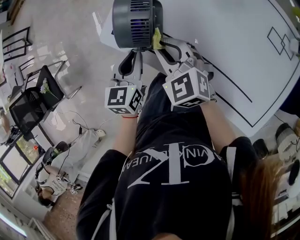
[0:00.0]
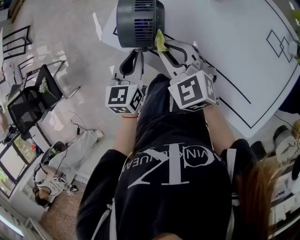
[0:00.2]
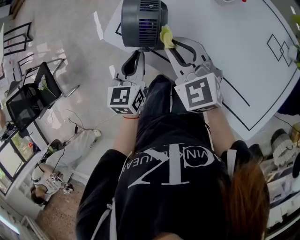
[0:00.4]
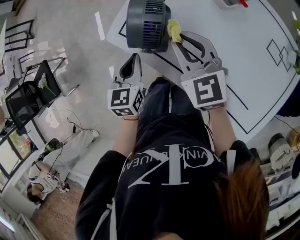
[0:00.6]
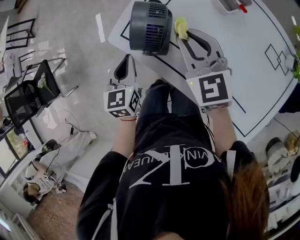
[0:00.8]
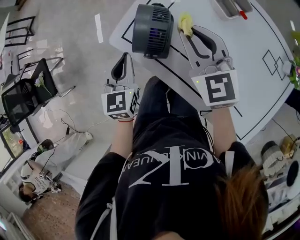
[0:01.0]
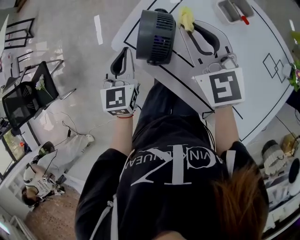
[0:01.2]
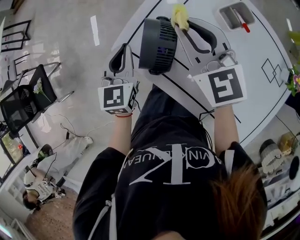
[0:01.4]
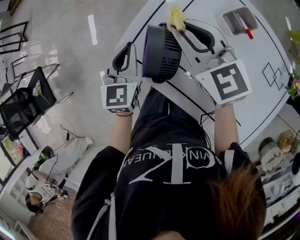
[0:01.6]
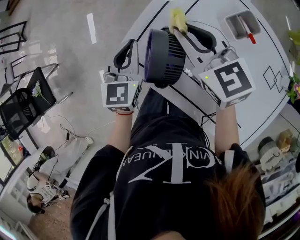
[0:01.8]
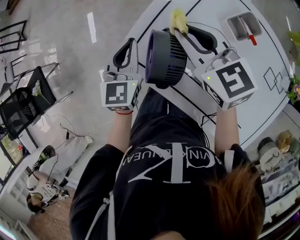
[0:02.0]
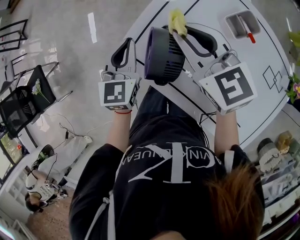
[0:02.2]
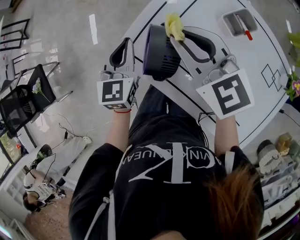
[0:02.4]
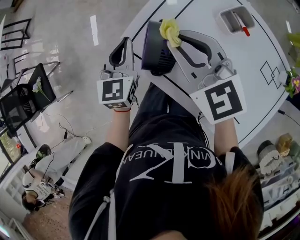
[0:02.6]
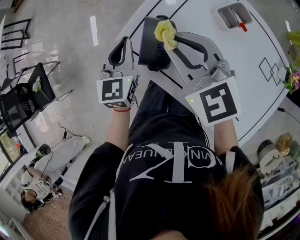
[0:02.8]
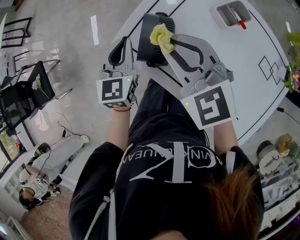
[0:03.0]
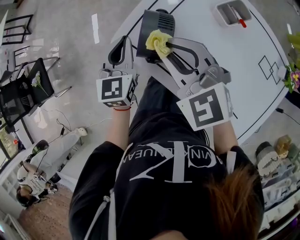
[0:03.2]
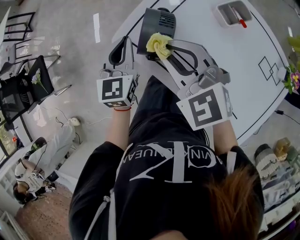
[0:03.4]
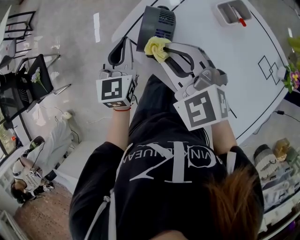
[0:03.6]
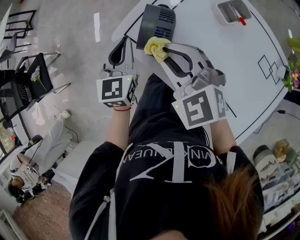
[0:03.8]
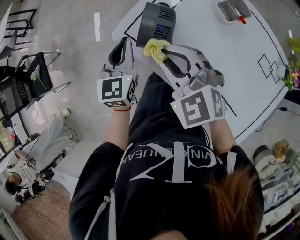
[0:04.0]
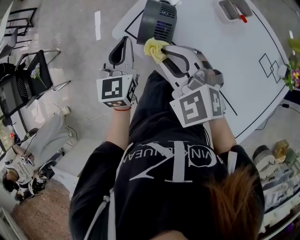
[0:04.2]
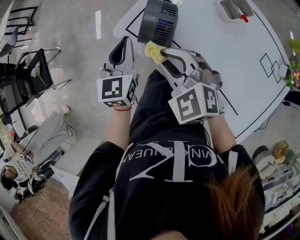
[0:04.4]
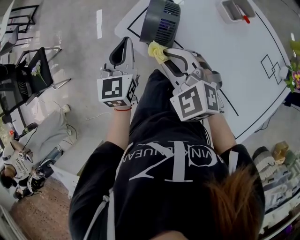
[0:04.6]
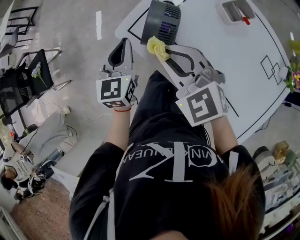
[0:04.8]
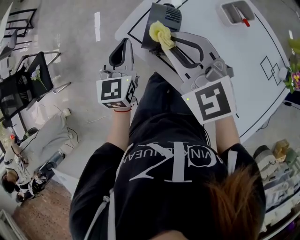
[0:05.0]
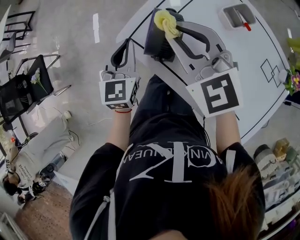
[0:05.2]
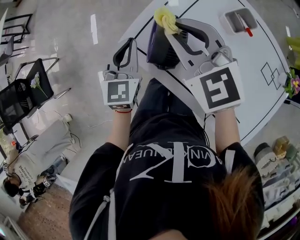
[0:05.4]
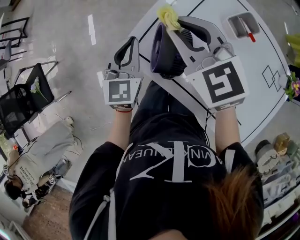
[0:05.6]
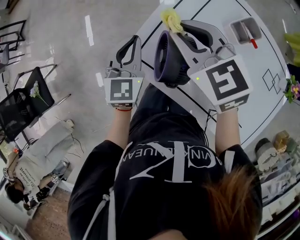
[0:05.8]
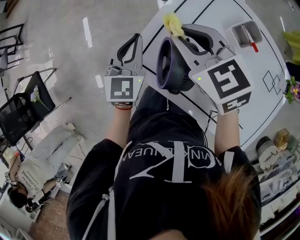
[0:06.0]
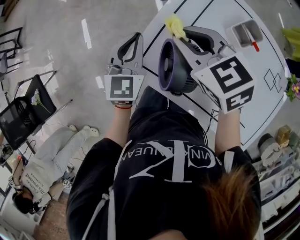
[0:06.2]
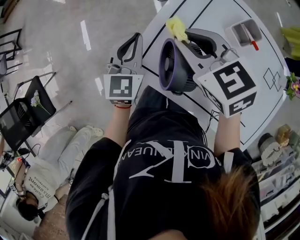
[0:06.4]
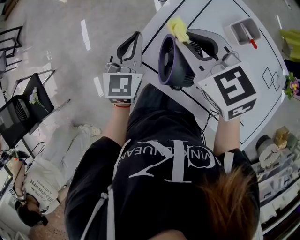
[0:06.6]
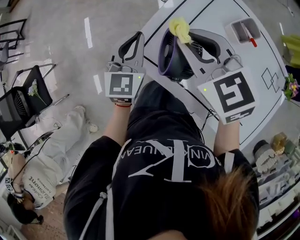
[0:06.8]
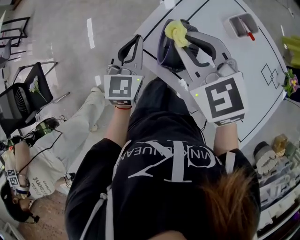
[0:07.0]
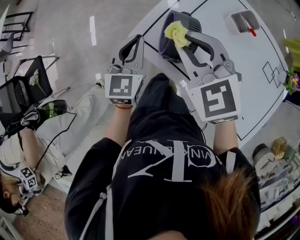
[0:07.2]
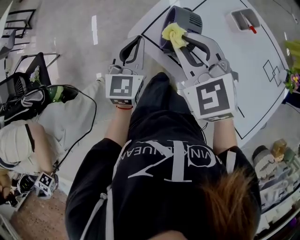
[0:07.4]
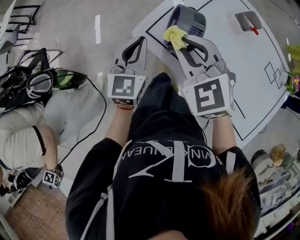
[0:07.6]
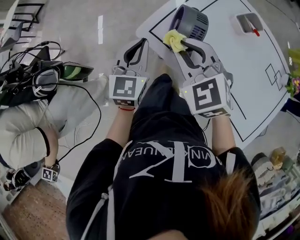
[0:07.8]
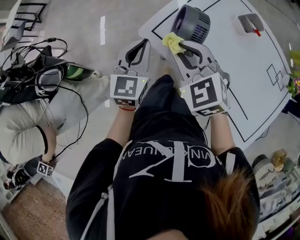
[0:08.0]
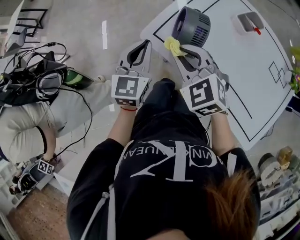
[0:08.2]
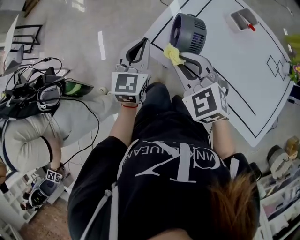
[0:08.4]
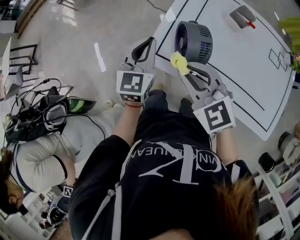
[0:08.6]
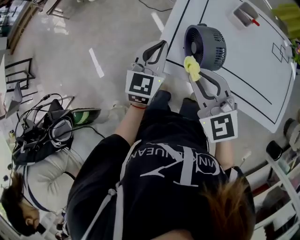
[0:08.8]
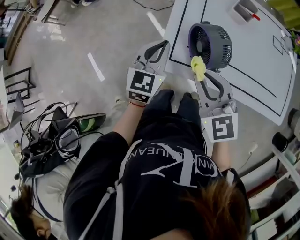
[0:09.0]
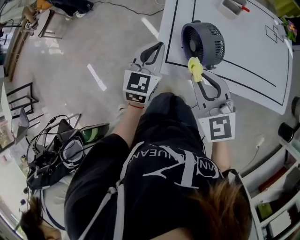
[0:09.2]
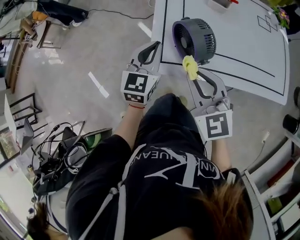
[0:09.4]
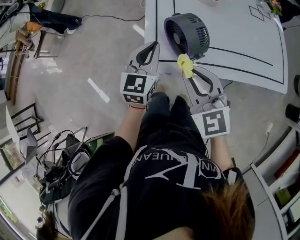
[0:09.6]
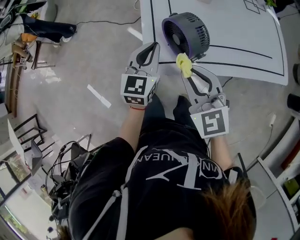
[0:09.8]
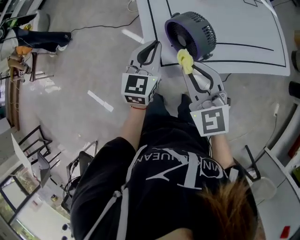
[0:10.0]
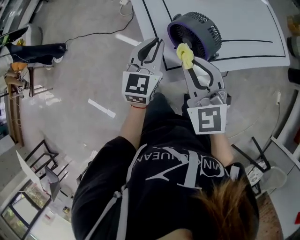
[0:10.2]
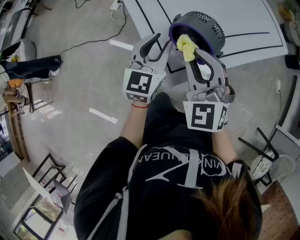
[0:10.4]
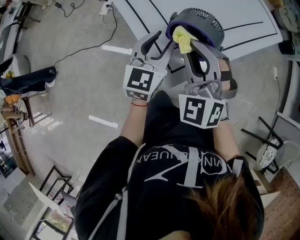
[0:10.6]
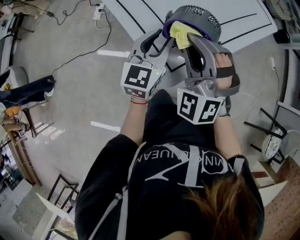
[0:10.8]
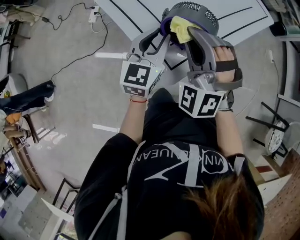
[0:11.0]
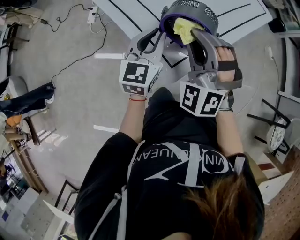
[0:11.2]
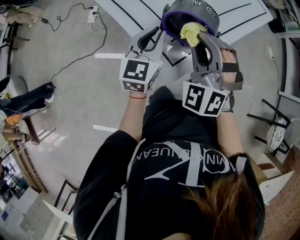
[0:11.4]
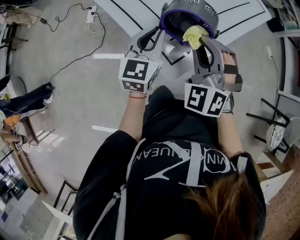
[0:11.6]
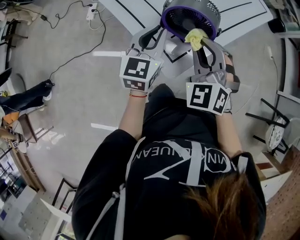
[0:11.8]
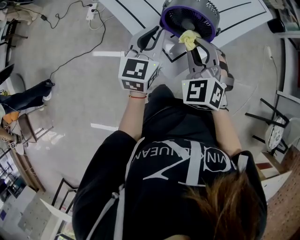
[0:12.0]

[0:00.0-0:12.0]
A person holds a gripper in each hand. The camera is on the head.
0:00.0 to 0:01.6: Both grippers move forward and upward, roughly 15 cm.
0:01.6 to 0:03.0: The right gripper heads backward, covering approximately 10 cm.
0:03.0 to 0:04.4: The right gripper heads backward and downward, covering approximately 10 cm. Meanwhile the left gripper ends up some 5 cm from where it was.
0:04.4 to 0:06.0: The two grippers go some 15 cm forward. The right gripper swivels some 30 degrees.
0:06.0 to 0:07.6: The two grippers go some 15 cm backward. The right gripper changes its angle by roughly 20 degrees.
0:07.6 to 0:09.0: The left gripper shifts by approximately 10 cm, and swivels roughly 40 degrees. The right gripper shifts by roughly 5 cm, and swivels about 40 degrees.
0:09.0 to 0:10.4: The left gripper ends up approximately 5 cm from where it was, swivels roughly 40 degrees, and opens. The right gripper ends up roughly 5 cm from where it was, and turns by about 50 degrees.
0:10.4 to 0:12.0: The right gripper moves downward, approximately 5 cm, and rotates about 20 degrees.

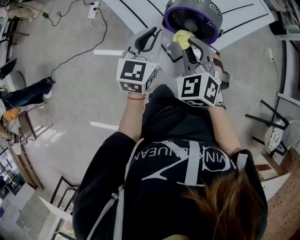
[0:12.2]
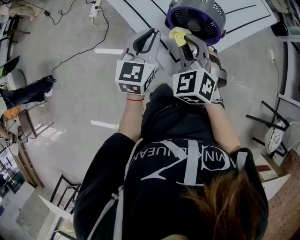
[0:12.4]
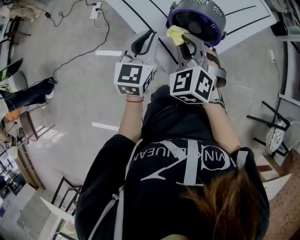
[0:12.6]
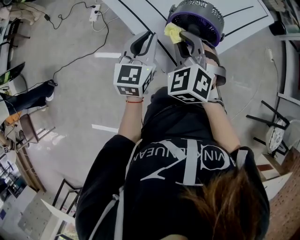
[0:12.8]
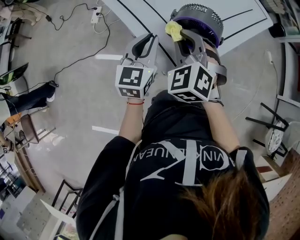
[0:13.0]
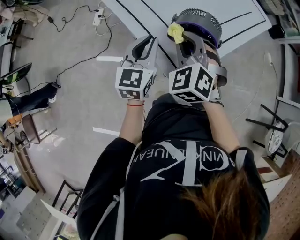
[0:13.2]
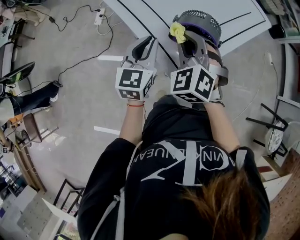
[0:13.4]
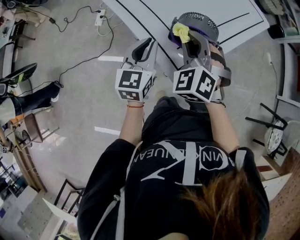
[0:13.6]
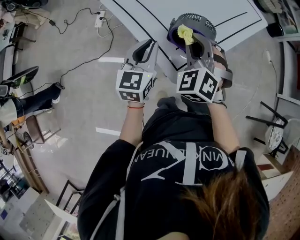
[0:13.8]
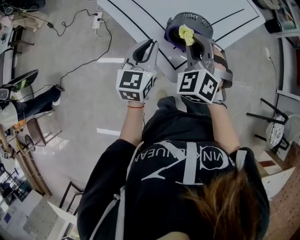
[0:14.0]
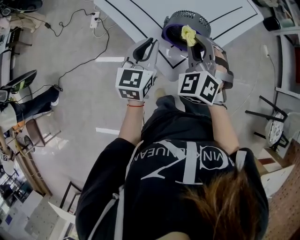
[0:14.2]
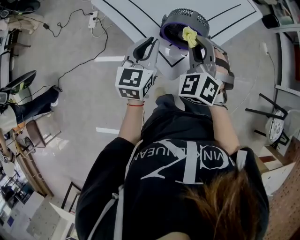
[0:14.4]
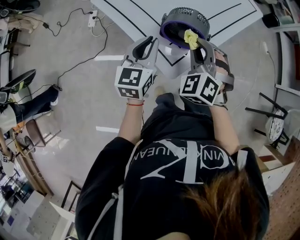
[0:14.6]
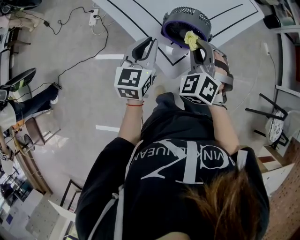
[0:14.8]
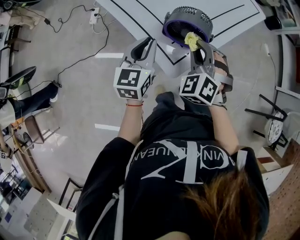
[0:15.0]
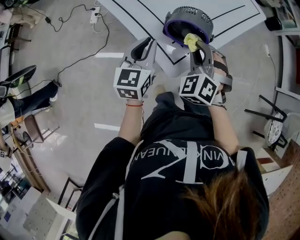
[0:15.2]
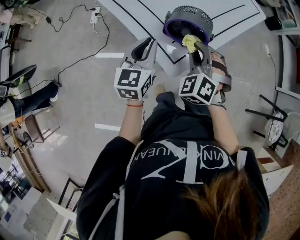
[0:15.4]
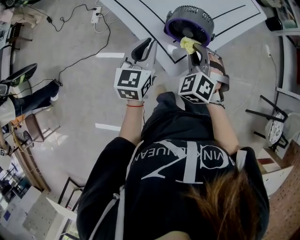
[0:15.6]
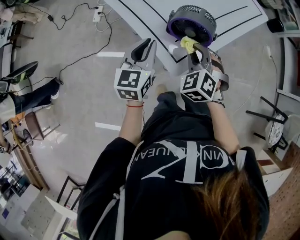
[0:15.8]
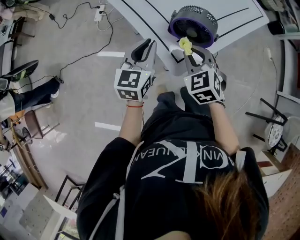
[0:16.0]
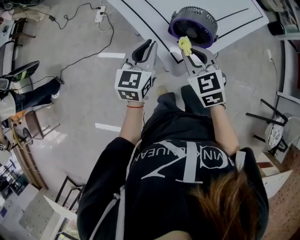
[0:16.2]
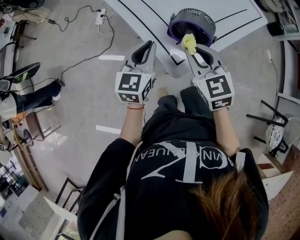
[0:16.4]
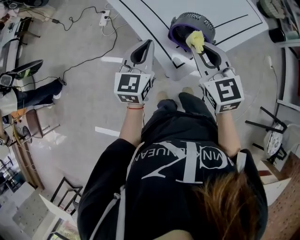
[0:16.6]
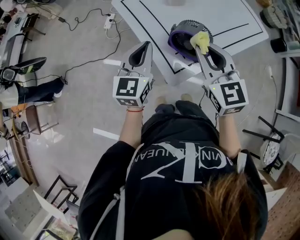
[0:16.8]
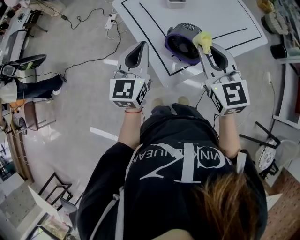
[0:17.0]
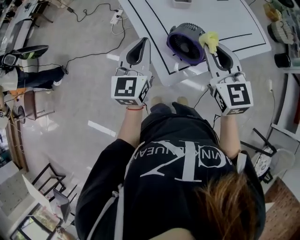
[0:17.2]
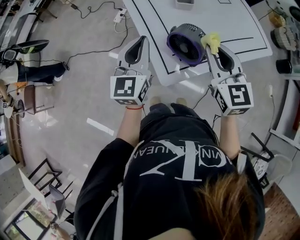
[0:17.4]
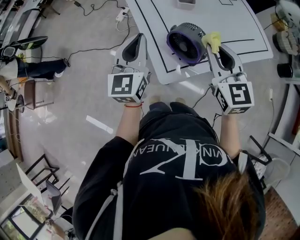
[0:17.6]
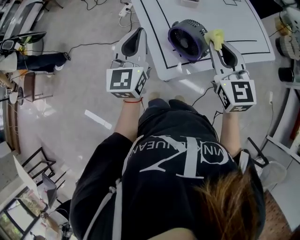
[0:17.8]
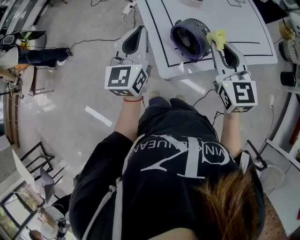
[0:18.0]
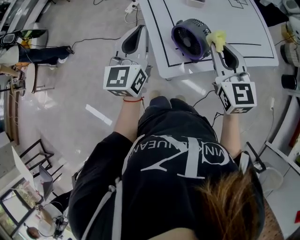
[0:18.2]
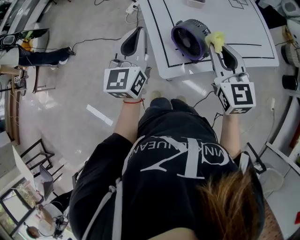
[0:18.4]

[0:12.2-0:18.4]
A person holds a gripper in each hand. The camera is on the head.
0:12.2 to 0:13.8: The left gripper moves upward, roughly 5 cm. The right gripper is displaced upward by roughly 10 cm.
0:13.8 to 0:15.4: The right gripper shifts about 5 cm downward.
0:15.4 to 0:16.8: The left gripper shifts approximately 5 cm upward, while the right gripper is displaced upward by roughly 10 cm, and rotates approximately 50 degrees.
0:16.8 to 0:18.4: The right gripper heads to the right, covering approximately 5 cm; the left gripper is displaced upward by about 5 cm, and rotates approximately 20 degrees.

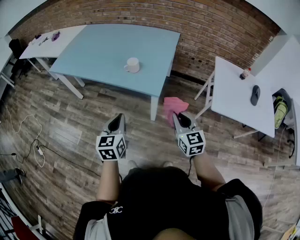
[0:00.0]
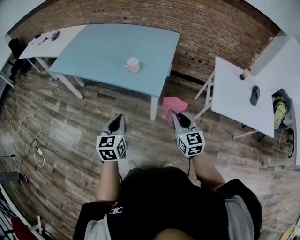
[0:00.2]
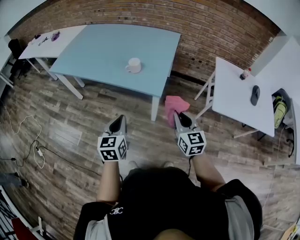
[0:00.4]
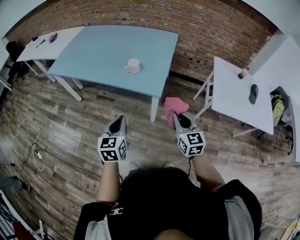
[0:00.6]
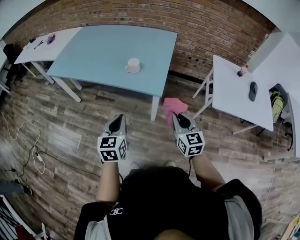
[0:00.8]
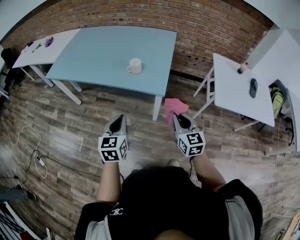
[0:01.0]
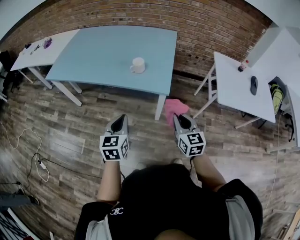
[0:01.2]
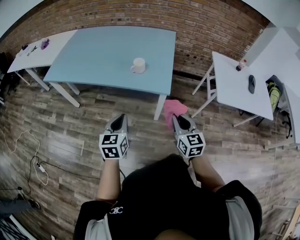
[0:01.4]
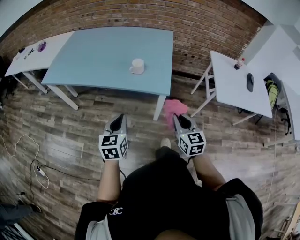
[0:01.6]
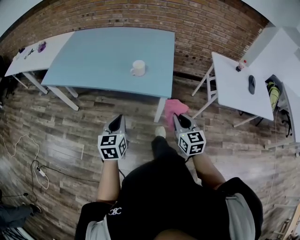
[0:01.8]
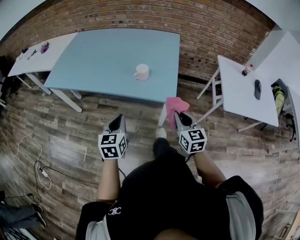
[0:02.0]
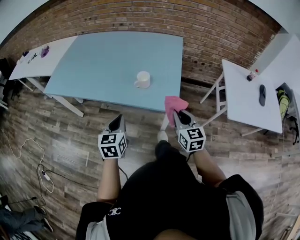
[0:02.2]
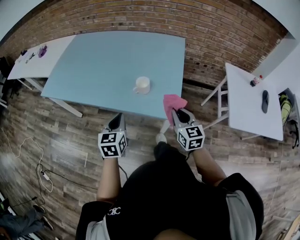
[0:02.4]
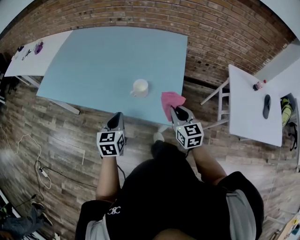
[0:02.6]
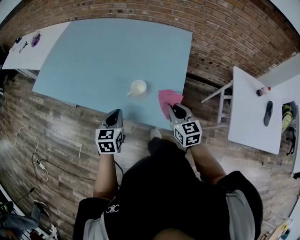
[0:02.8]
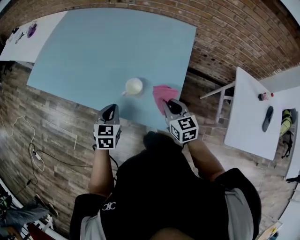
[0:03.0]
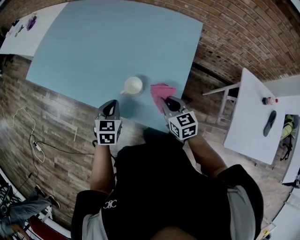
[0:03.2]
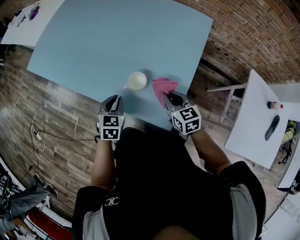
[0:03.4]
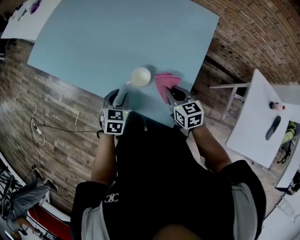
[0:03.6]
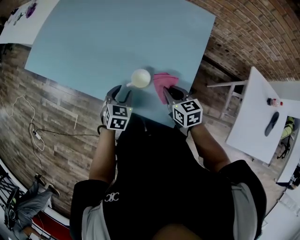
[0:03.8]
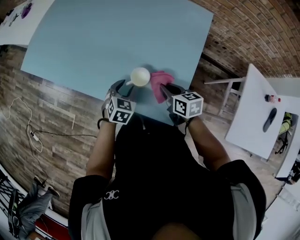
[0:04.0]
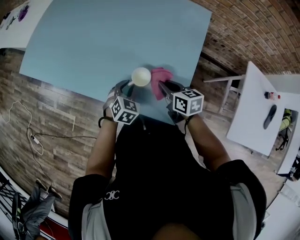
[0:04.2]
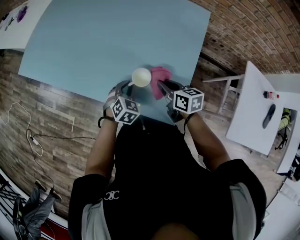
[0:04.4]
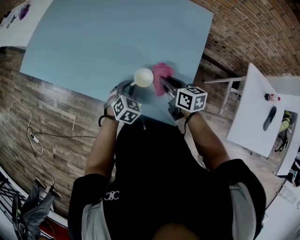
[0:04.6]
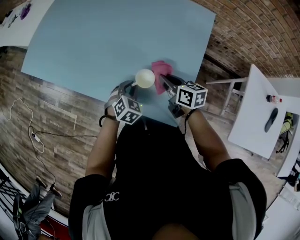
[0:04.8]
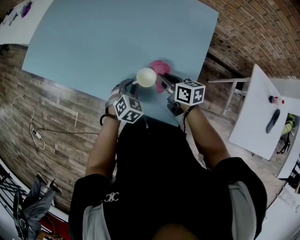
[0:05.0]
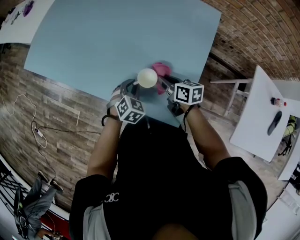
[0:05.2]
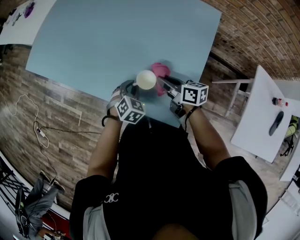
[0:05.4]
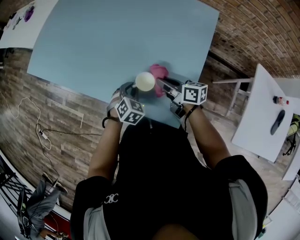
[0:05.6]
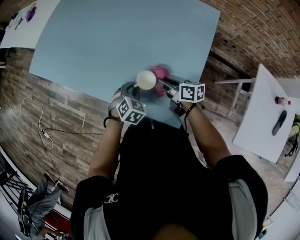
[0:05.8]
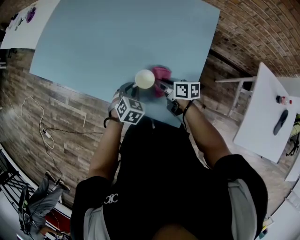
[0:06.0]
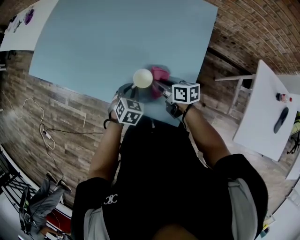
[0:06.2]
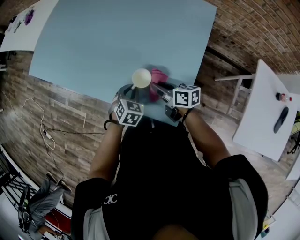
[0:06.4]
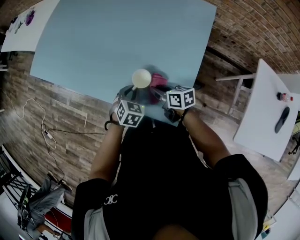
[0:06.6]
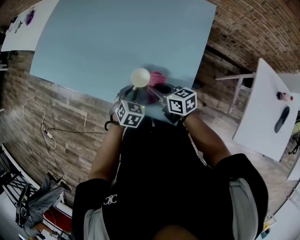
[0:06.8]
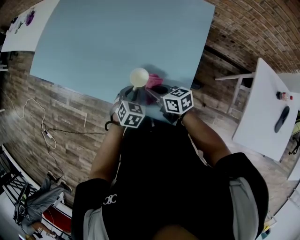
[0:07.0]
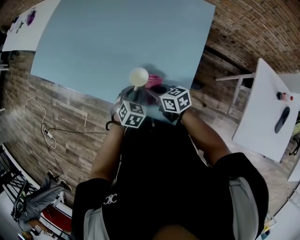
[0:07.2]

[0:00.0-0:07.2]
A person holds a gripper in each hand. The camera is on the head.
0:00.0 to 0:01.4: Both grippers move to the left, roughly 10 cm.
0:01.4 to 0:02.8: The two grippers go roughly 30 cm forward.
0:02.8 to 0:04.4: The left gripper moves downward, forward and to the right, some 15 cm, and turns by approximately 30 degrees, while the right gripper shifts some 15 cm forward and downward, and turns by roughly 30 degrees.
0:04.4 to 0:05.8: The right gripper rotates roughly 20 degrees.
0:05.8 to 0:07.2: The right gripper changes place by about 5 cm.
